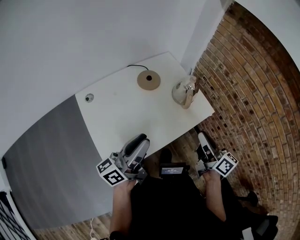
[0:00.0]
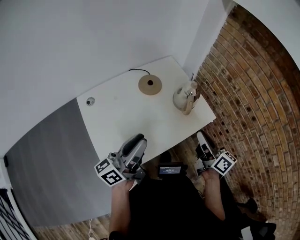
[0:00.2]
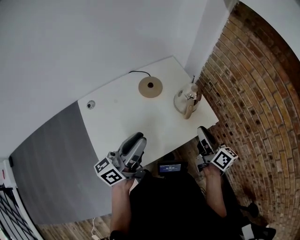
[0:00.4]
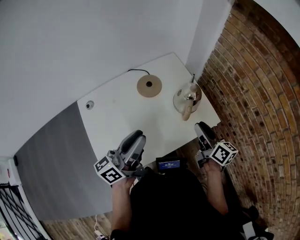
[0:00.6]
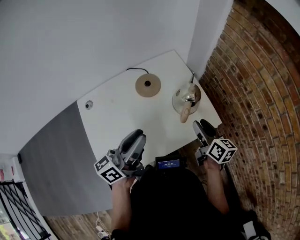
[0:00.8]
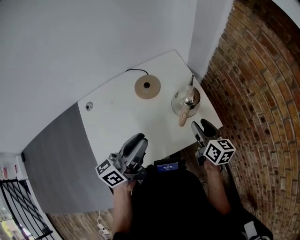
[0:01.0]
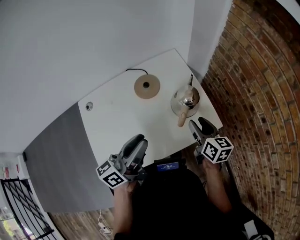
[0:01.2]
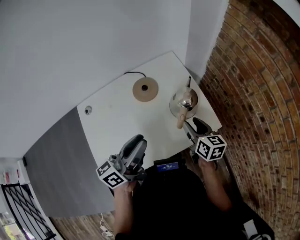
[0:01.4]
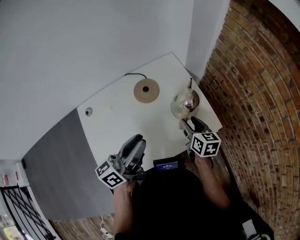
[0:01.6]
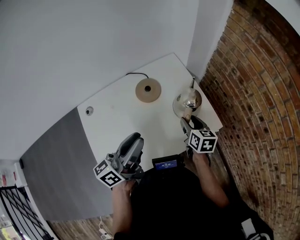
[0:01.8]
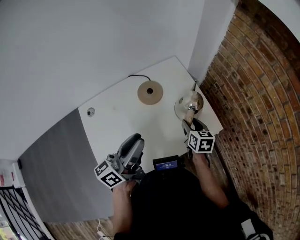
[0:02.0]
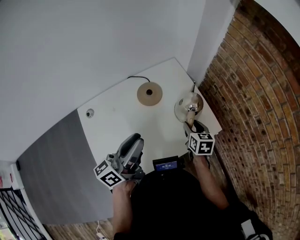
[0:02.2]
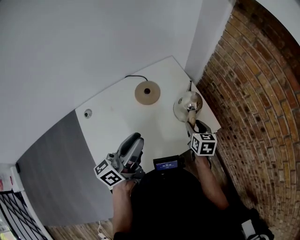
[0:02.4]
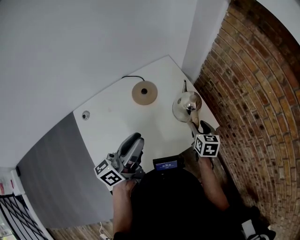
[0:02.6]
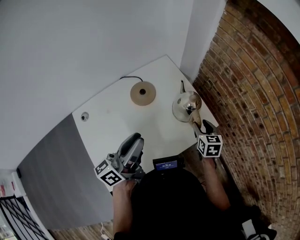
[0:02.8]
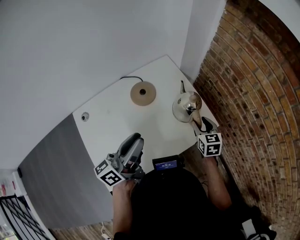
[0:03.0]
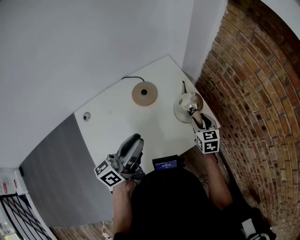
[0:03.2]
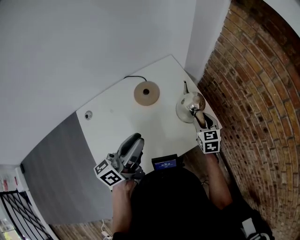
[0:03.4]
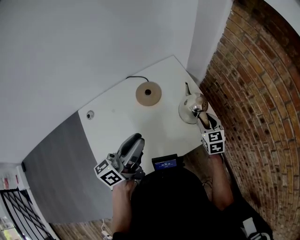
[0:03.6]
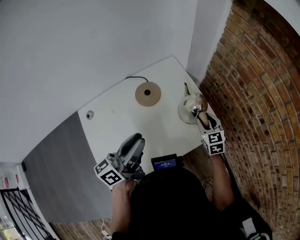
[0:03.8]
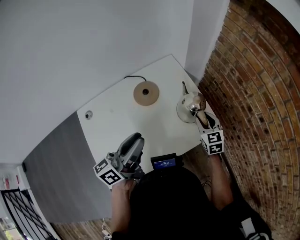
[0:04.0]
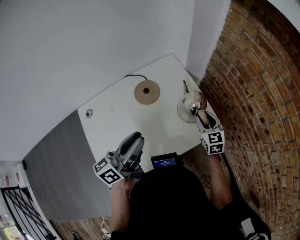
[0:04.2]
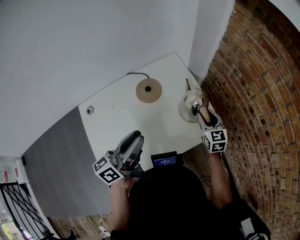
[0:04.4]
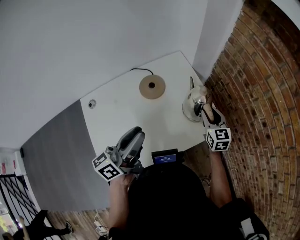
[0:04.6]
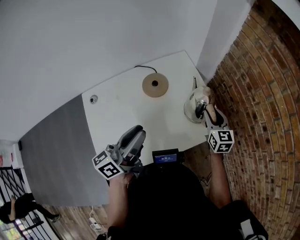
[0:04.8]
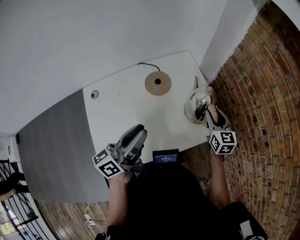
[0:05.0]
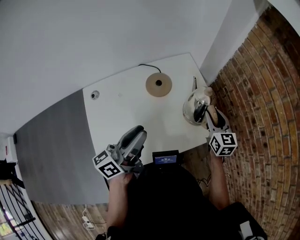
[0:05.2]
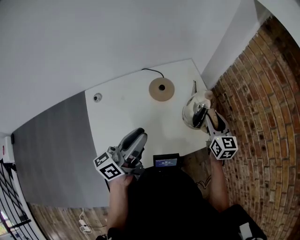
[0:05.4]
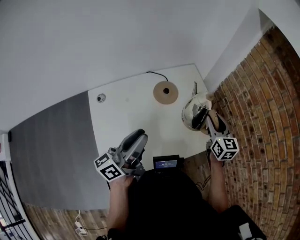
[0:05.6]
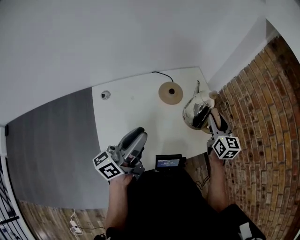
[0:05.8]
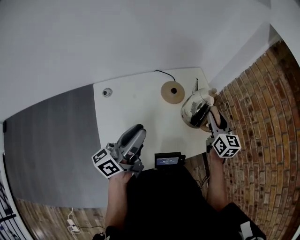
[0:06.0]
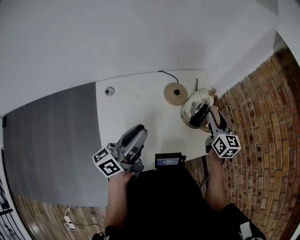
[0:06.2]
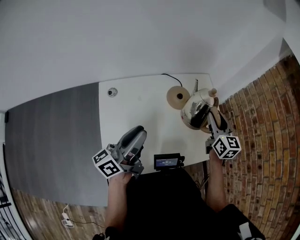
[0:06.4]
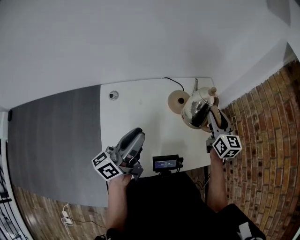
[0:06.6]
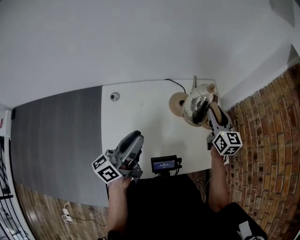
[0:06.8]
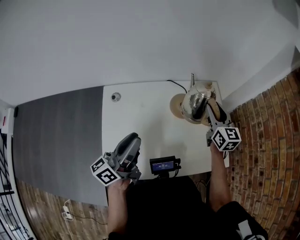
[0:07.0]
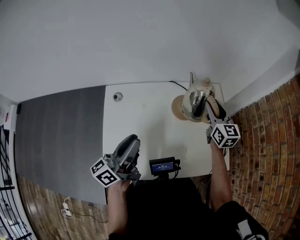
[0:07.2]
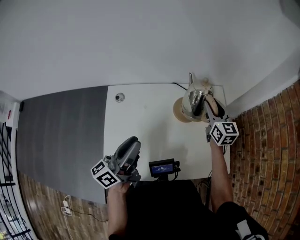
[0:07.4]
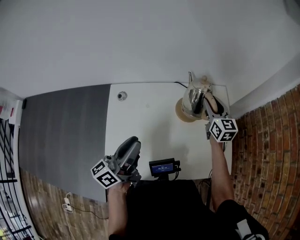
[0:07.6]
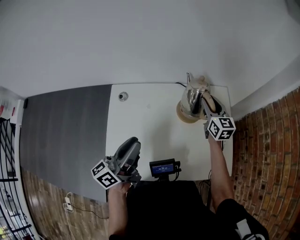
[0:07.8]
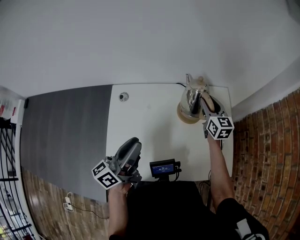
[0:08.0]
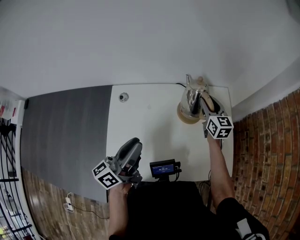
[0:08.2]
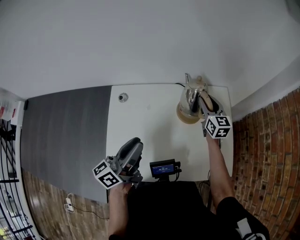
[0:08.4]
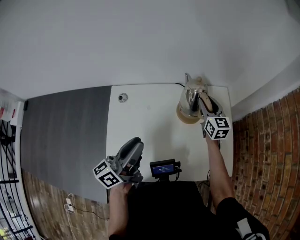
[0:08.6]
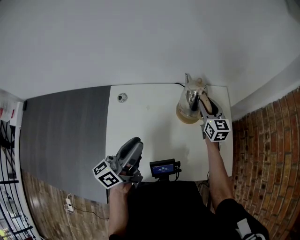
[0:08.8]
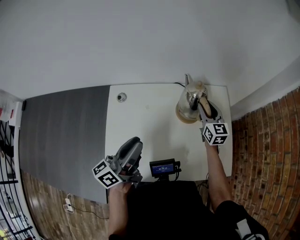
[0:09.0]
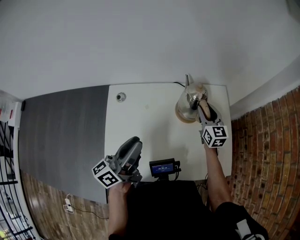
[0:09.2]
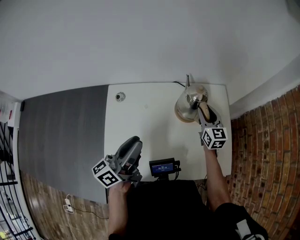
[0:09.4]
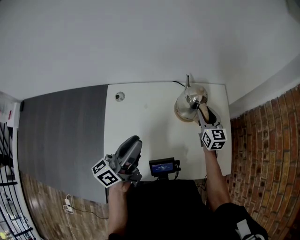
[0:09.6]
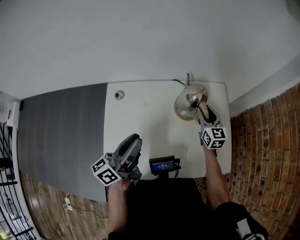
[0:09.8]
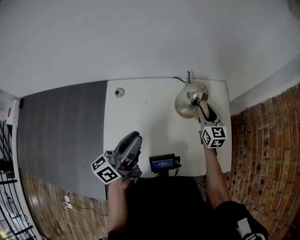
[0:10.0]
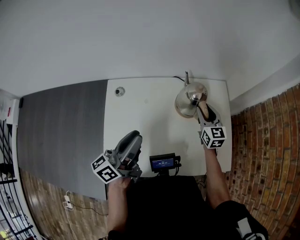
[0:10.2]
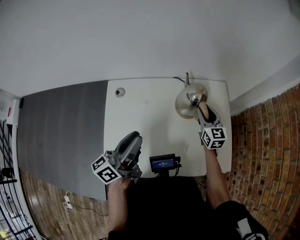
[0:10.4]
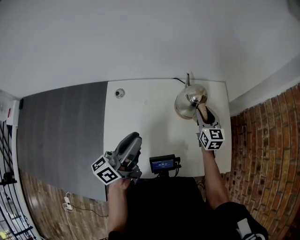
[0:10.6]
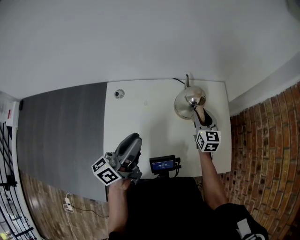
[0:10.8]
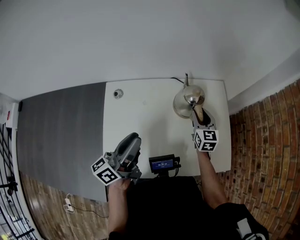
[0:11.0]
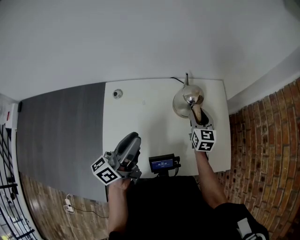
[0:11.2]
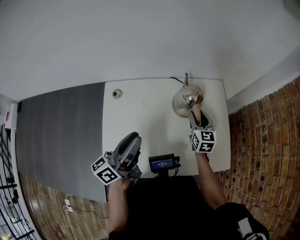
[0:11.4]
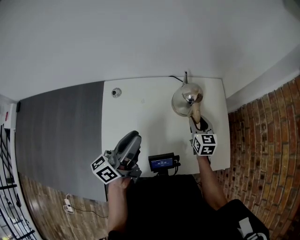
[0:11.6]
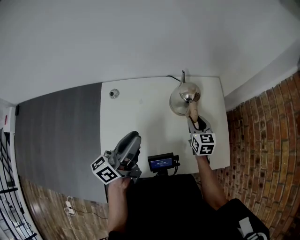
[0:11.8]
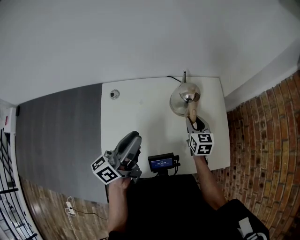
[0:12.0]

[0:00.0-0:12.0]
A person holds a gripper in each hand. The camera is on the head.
0:00.0 to 0:01.6: The right gripper travels forward and downward by approximately 25 cm, changes its angle by about 30 degrees, and opens up; the left gripper travels forward and to the right by approximately 15 cm.
0:01.6 to 0:03.0: The right gripper shifts some 5 cm to the right, and turns by approximately 20 degrees.
0:03.0 to 0:04.4: The grippers move only a little.
0:04.4 to 0:06.0: The left gripper is displaced to the left by about 15 cm. Meanwhile the right gripper moves upward and to the left, about 15 cm.
0:06.0 to 0:07.6: The right gripper travels forward and to the left by roughly 20 cm, while the left gripper turns by some 20 degrees.
0:07.6 to 0:09.0: The grippers stay close to where they were, moving slightly.
0:09.0 to 0:10.4: The grippers stay close to where they were, moving slightly.
0:10.4 to 0:12.0: The right gripper heads backward, covering about 5 cm.

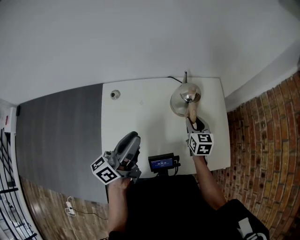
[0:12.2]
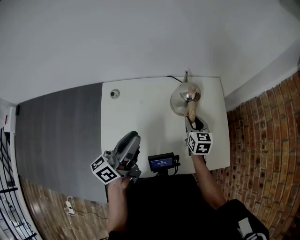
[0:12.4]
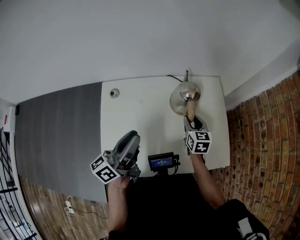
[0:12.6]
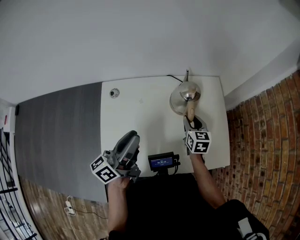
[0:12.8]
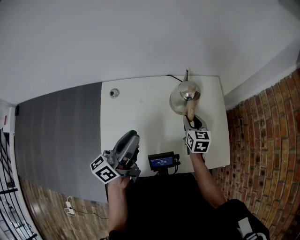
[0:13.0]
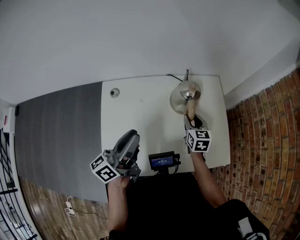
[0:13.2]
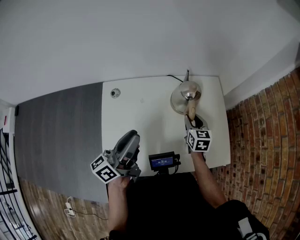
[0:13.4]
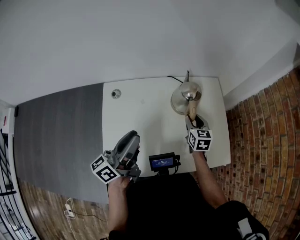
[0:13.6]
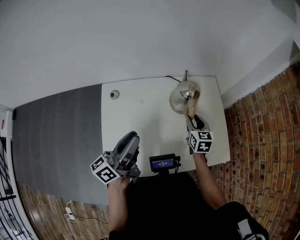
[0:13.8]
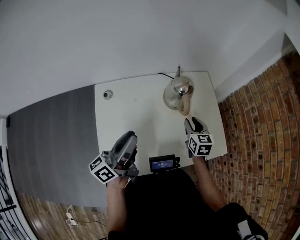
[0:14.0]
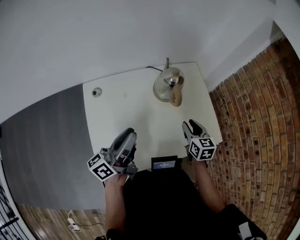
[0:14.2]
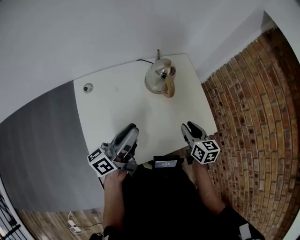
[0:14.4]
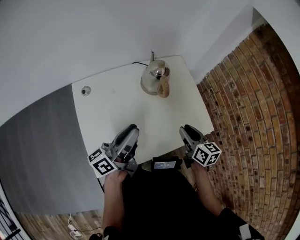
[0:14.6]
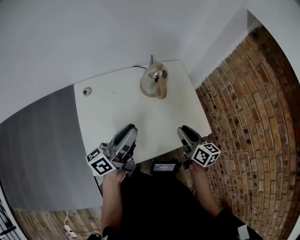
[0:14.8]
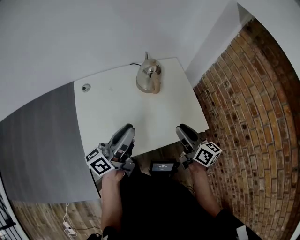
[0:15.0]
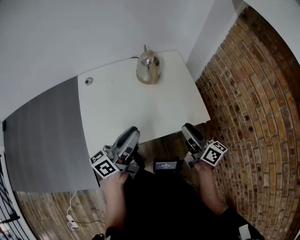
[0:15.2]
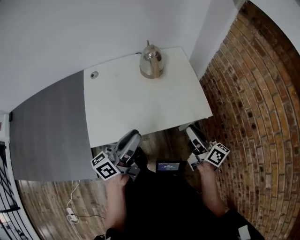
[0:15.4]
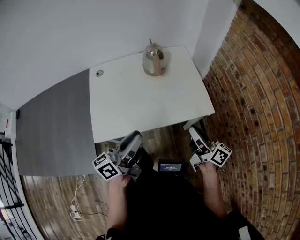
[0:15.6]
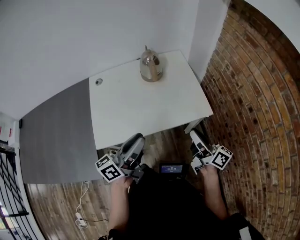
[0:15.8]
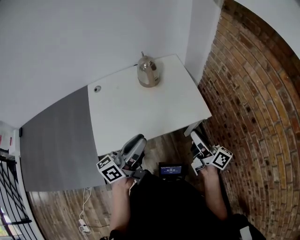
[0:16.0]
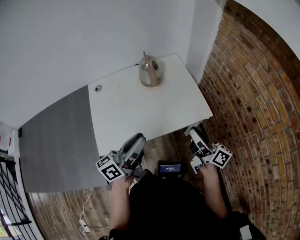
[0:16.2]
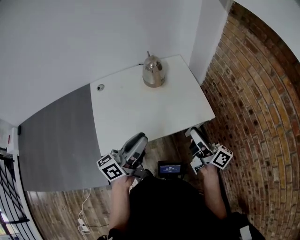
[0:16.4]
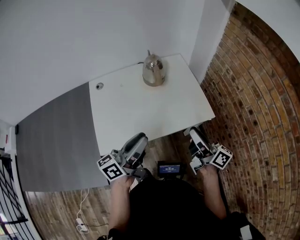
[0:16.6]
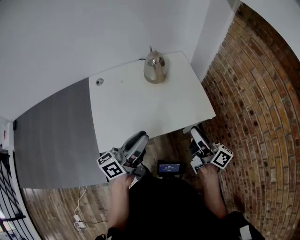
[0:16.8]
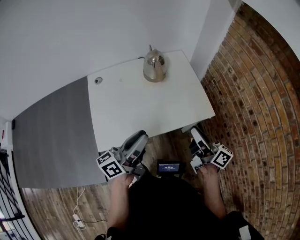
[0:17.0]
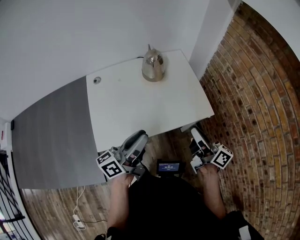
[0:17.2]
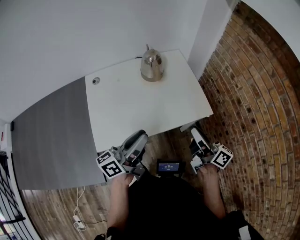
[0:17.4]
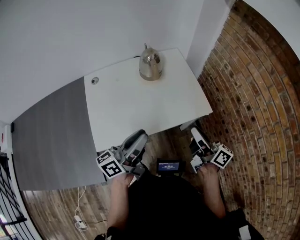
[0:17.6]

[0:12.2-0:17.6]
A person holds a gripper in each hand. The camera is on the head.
0:12.2 to 0:13.6: The grippers make only small movements.
0:13.6 to 0:15.0: The left gripper heads to the right and backward, covering some 10 cm. The right gripper travels backward, upward and to the right by approximately 25 cm, and changes its angle by about 40 degrees.
0:15.0 to 0:16.2: Both grippers move backward and to the right, about 15 cm. The right gripper changes its angle by roughly 30 degrees.
0:16.2 to 0:17.6: The grippers move only a little.

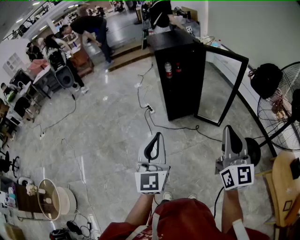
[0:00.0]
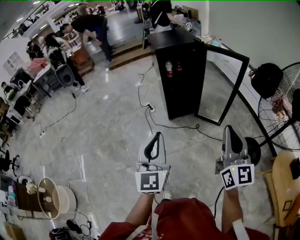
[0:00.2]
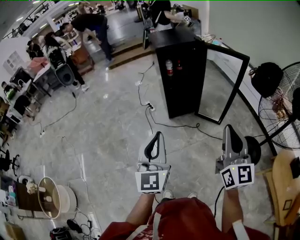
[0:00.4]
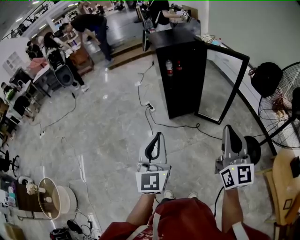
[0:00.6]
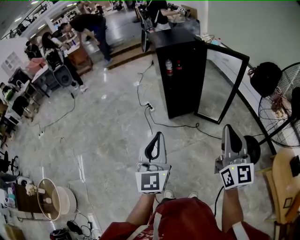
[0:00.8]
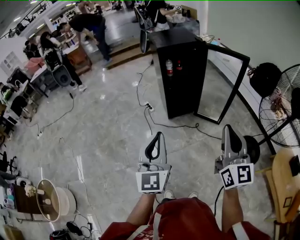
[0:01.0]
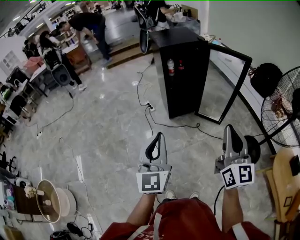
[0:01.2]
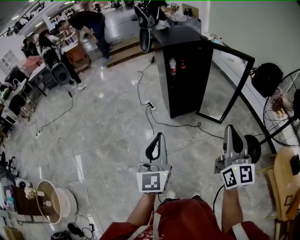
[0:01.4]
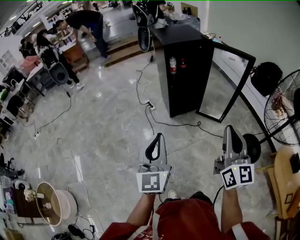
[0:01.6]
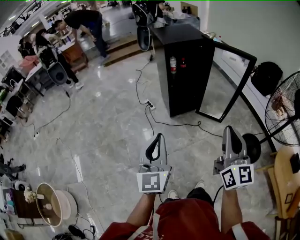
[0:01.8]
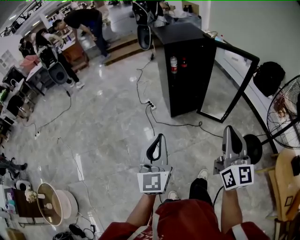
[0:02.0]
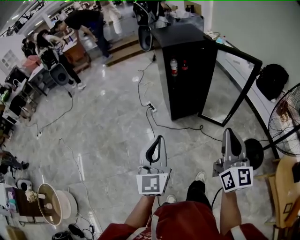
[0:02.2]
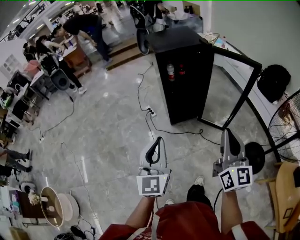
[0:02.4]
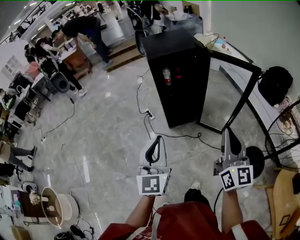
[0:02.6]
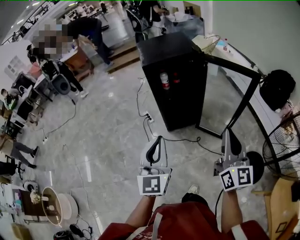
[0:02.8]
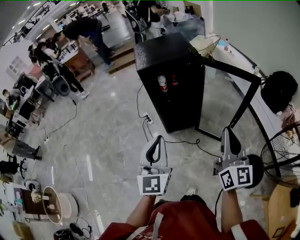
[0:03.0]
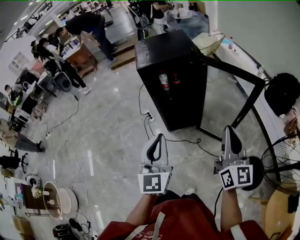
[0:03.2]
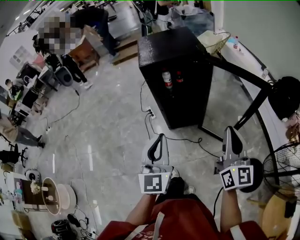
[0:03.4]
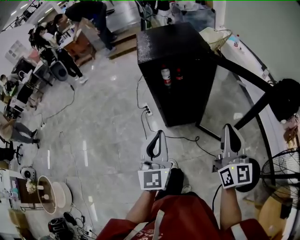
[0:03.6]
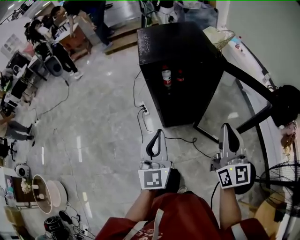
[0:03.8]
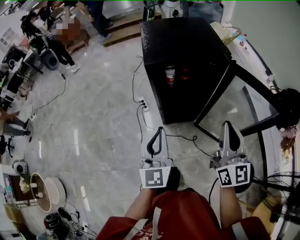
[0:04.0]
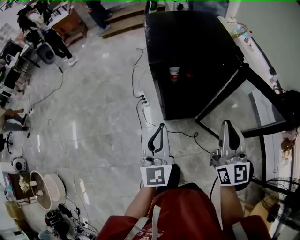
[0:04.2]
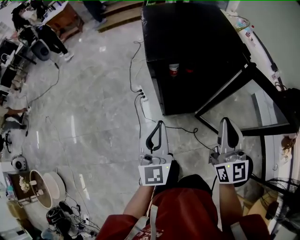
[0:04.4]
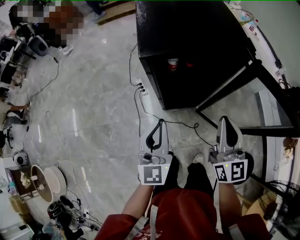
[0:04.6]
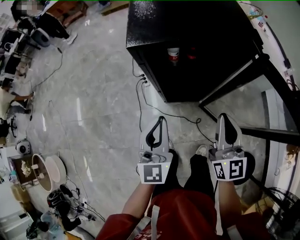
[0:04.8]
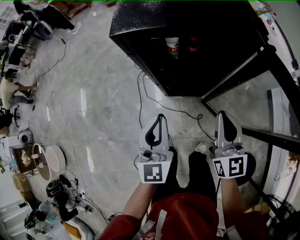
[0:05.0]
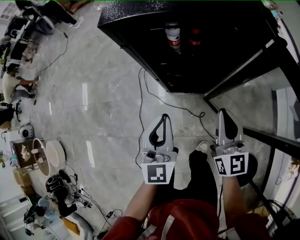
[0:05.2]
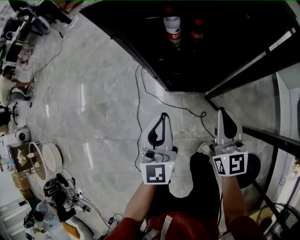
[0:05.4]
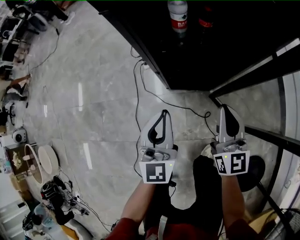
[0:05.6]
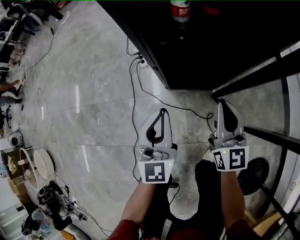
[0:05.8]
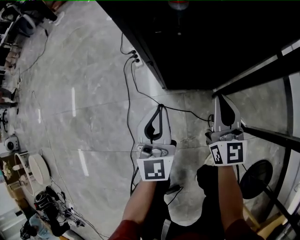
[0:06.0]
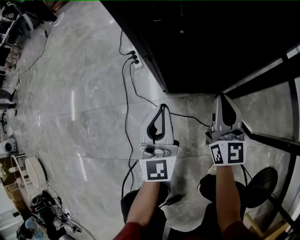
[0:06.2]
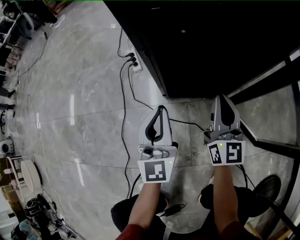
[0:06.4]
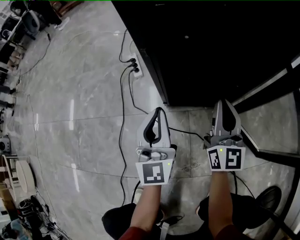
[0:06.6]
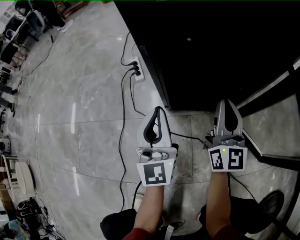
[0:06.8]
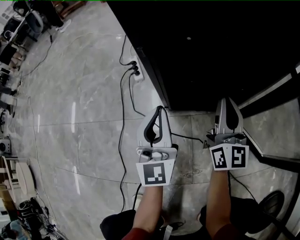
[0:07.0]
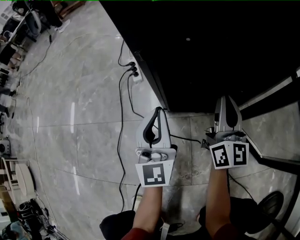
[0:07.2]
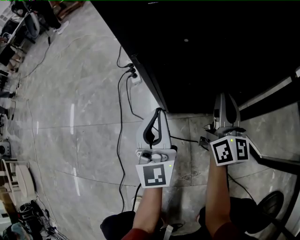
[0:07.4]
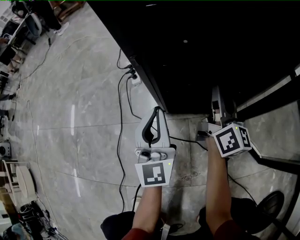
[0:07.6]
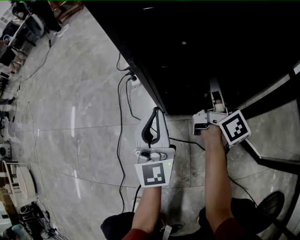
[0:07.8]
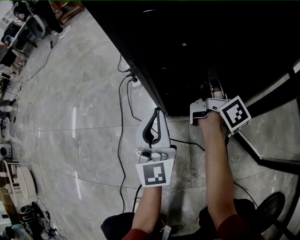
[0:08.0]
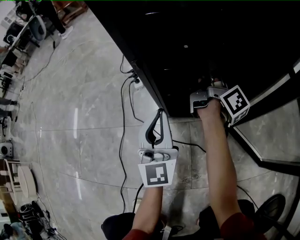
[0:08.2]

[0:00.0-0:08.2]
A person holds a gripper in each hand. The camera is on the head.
0:00.0 to 0:01.6: The two grippers go some 10 cm to the left.
0:01.6 to 0:03.2: Both grippers travel together forward and to the right, some 35 cm.
0:03.2 to 0:05.0: The two grippers go roughly 35 cm forward and downward. The right gripper swivels roughly 20 degrees.
0:05.0 to 0:06.6: Both grippers travel together downward, about 50 cm.
0:06.6 to 0:08.2: The right gripper moves forward, about 15 cm, rotates around the line of its fingers by roughly 70 degrees, clockwise from behind, and opens.
